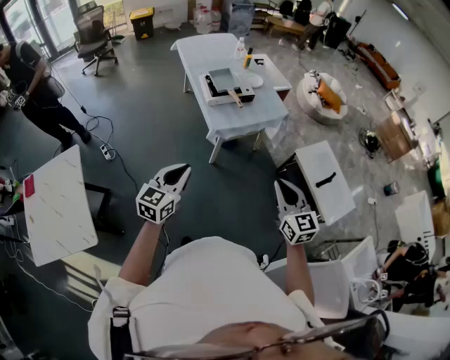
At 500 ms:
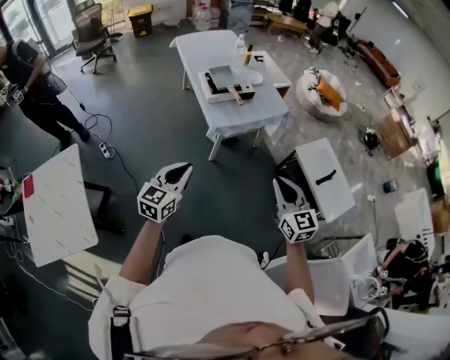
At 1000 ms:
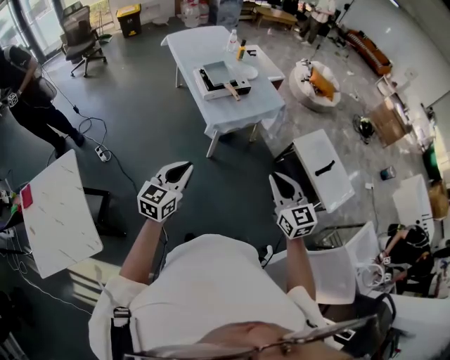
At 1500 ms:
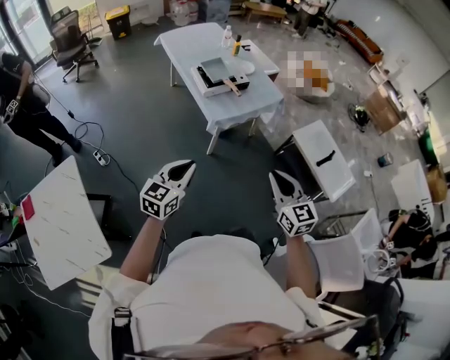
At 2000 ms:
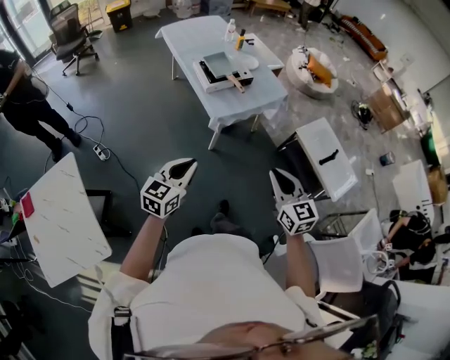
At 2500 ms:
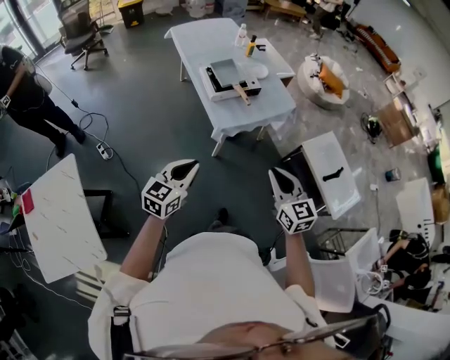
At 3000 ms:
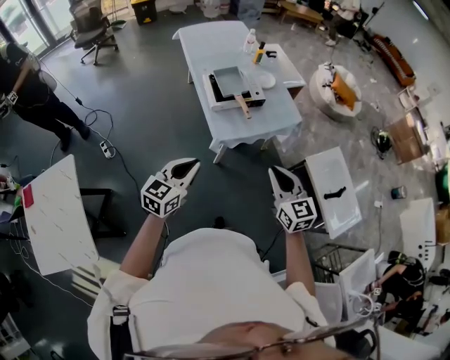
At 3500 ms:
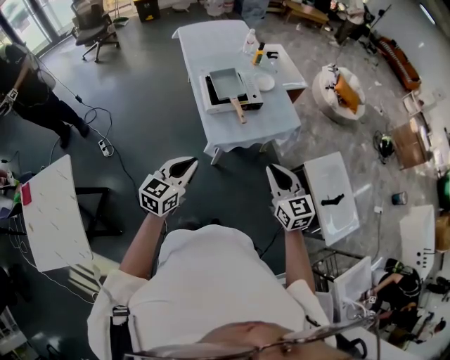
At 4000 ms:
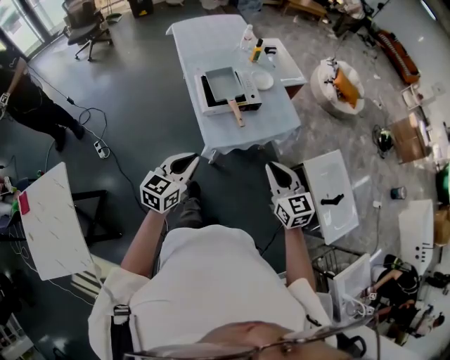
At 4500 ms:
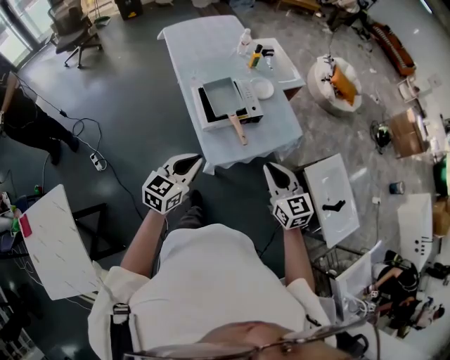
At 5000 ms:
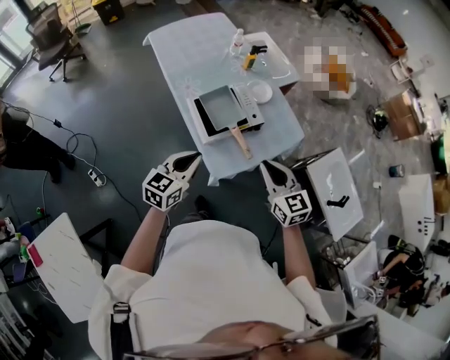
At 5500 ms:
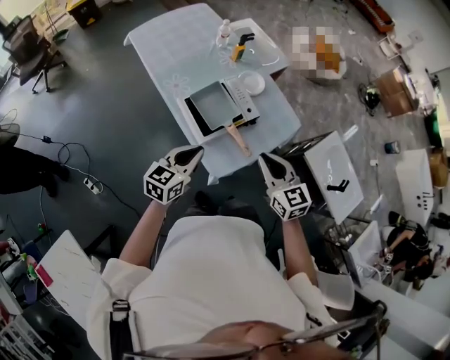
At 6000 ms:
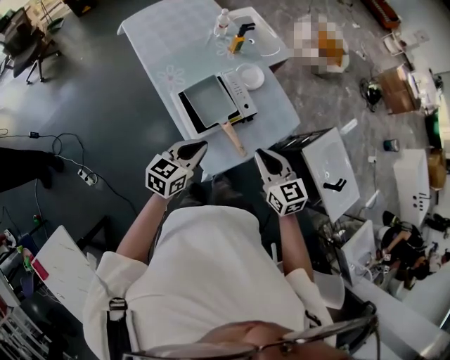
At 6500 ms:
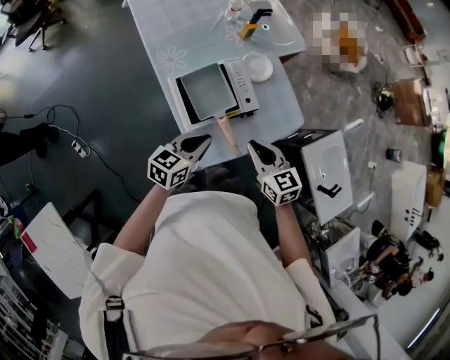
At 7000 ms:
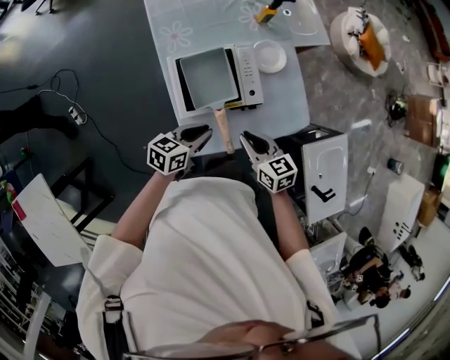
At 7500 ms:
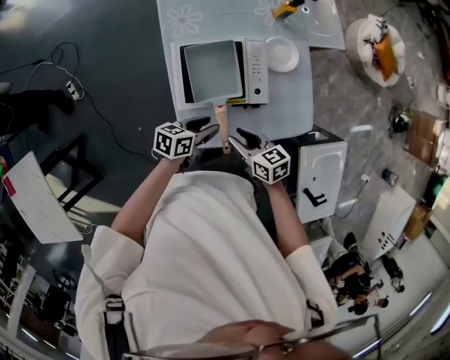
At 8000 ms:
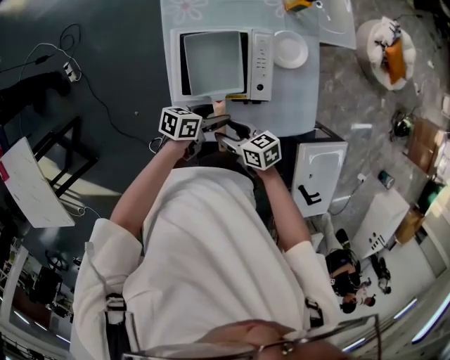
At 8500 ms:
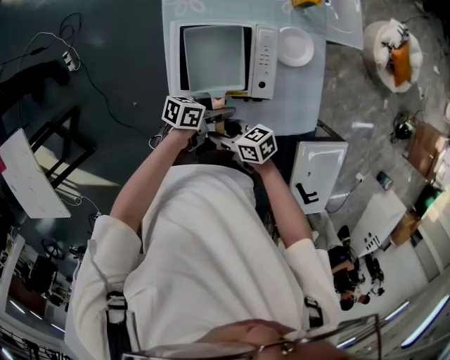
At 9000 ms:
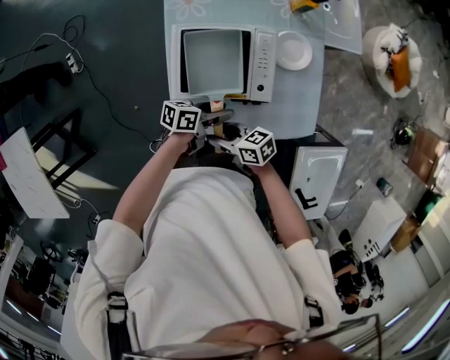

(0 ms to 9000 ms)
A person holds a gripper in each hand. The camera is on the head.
0 ms - 2000 ms: The right gripper heads to the left, covering roughly 10 cm. The left gripper changes place by roughly 5 cm.
2000 ms - 4500 ms: The grippers both shift forward by approximately 35 cm.
4500 ms - 7000 ms: The grippers both shift forward and downward by some 30 cm. The right gripper swivels roughly 30 degrees, while the left gripper changes its angle by some 30 degrees.
7000 ms - 9000 ms: The two grippers go about 10 cm downward. The right gripper swivels some 40 degrees, and opens up, while the left gripper rotates approximately 30 degrees, and opens its fingers.

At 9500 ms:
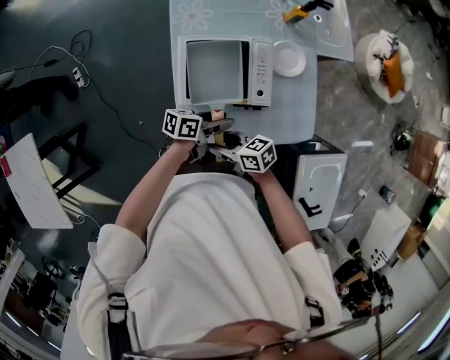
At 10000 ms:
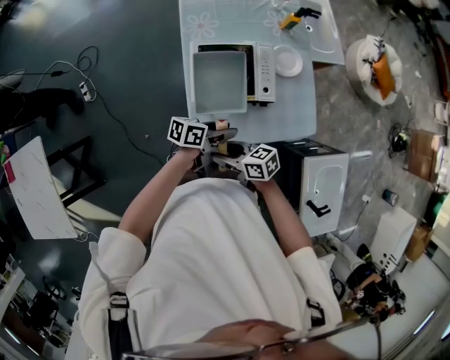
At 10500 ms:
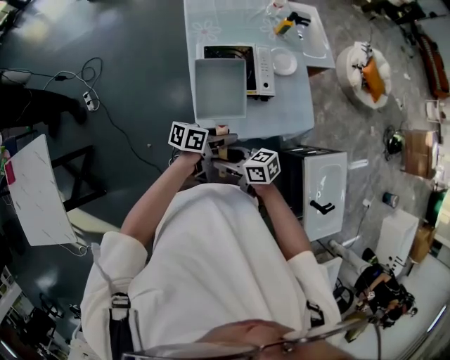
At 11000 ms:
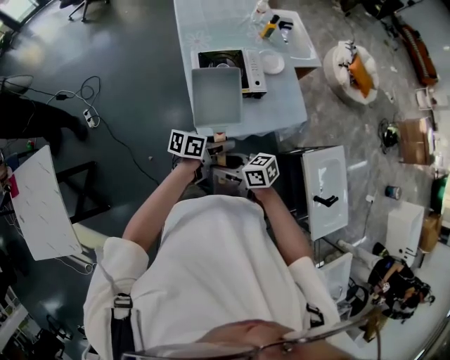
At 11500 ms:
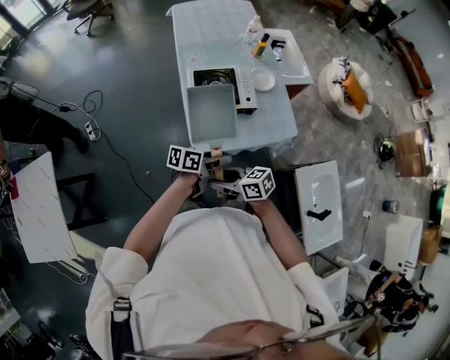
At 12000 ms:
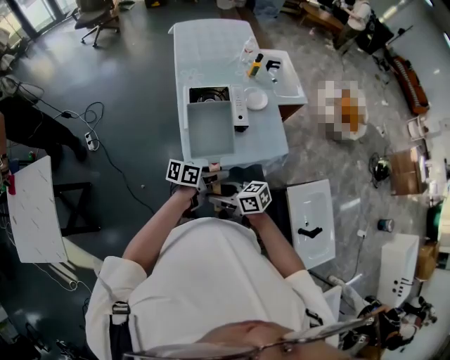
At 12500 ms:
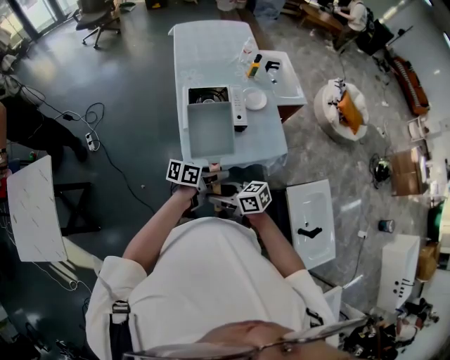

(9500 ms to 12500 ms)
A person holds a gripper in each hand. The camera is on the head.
9500 ms - 11000 ms: The left gripper shifts by roughly 25 cm. The right gripper ends up some 20 cm from where it was.
11000 ms - 12500 ms: The right gripper ends up about 10 cm from where it was. The left gripper ends up about 10 cm from where it was.

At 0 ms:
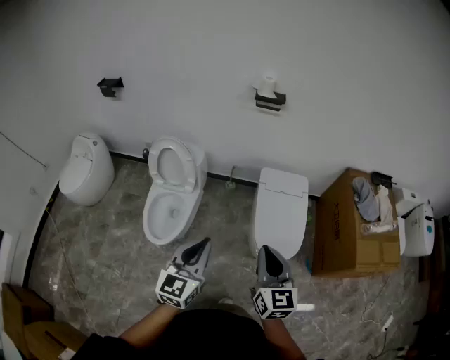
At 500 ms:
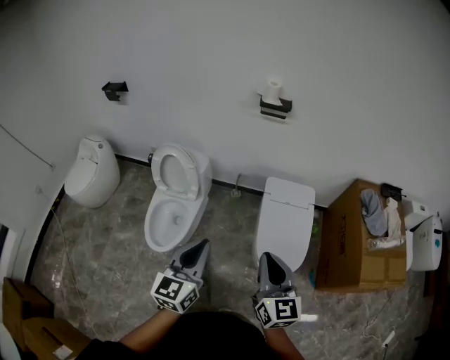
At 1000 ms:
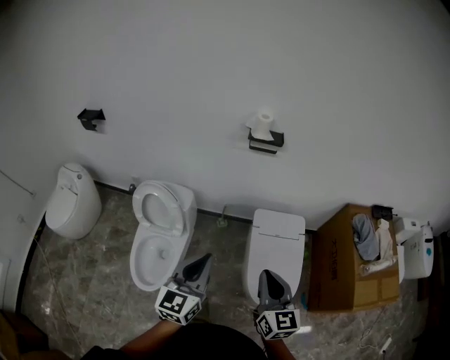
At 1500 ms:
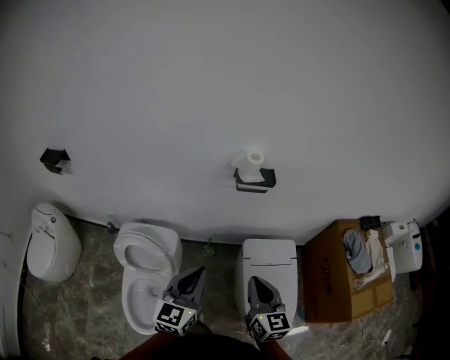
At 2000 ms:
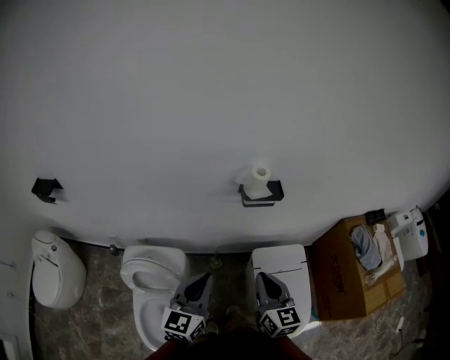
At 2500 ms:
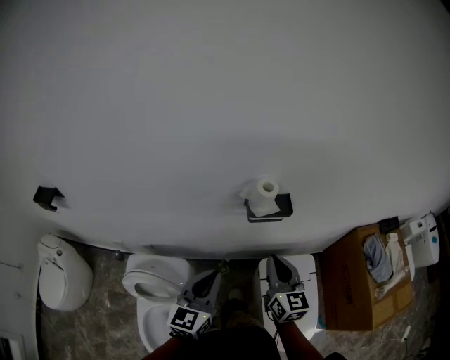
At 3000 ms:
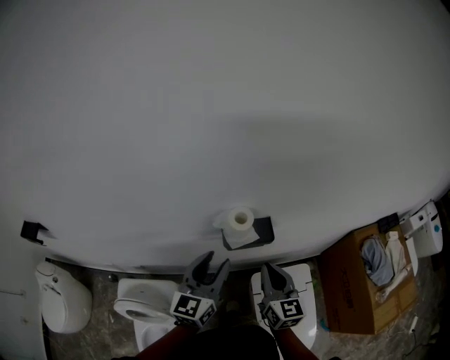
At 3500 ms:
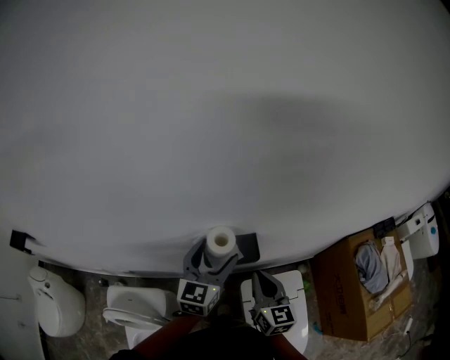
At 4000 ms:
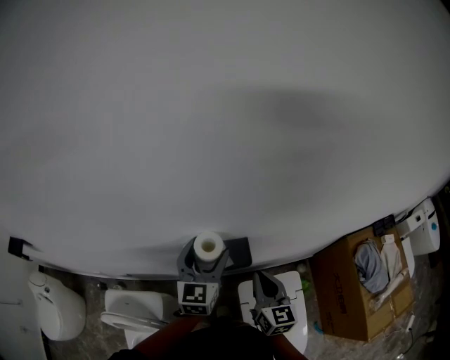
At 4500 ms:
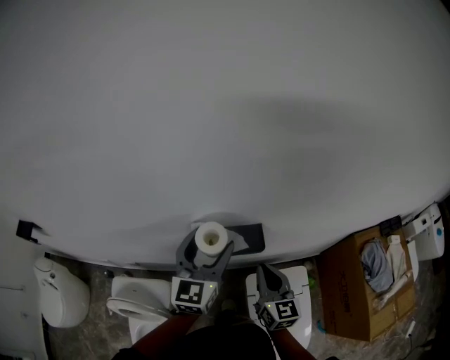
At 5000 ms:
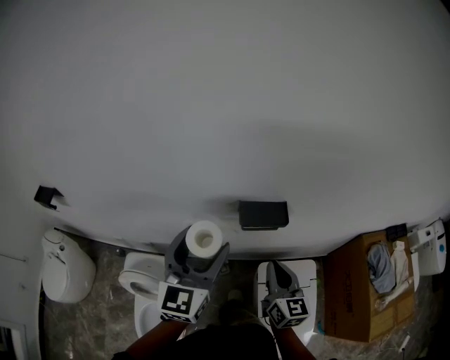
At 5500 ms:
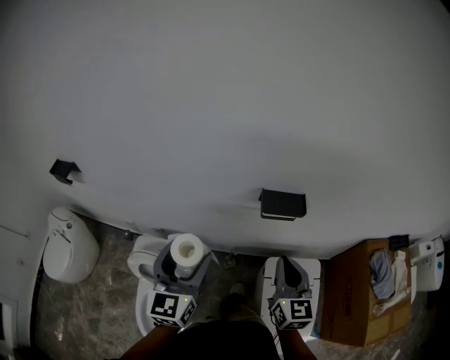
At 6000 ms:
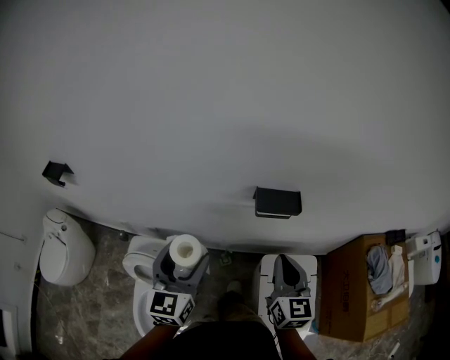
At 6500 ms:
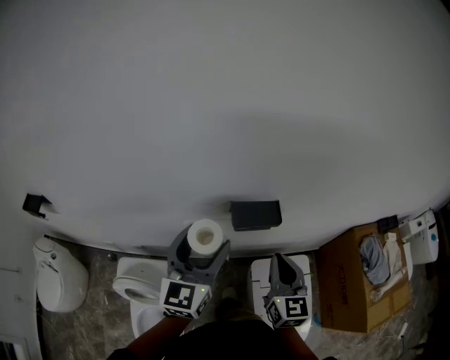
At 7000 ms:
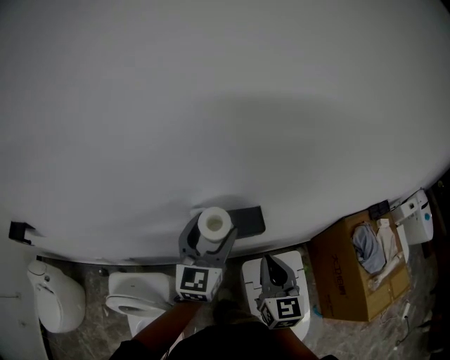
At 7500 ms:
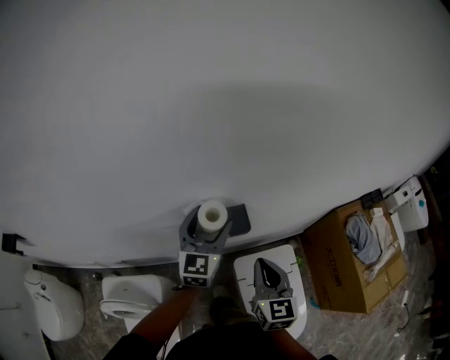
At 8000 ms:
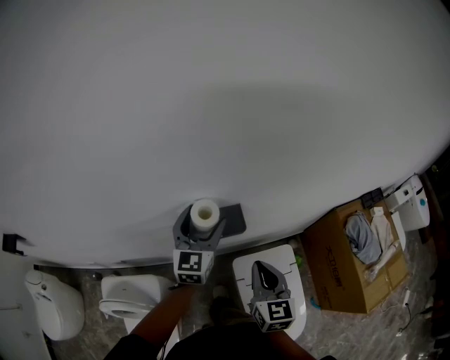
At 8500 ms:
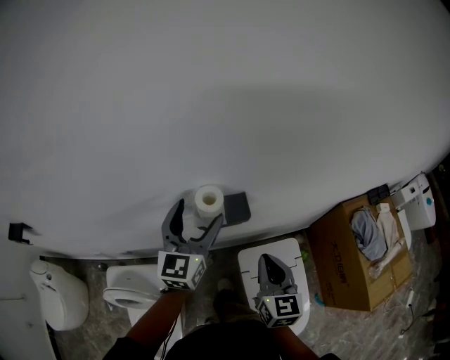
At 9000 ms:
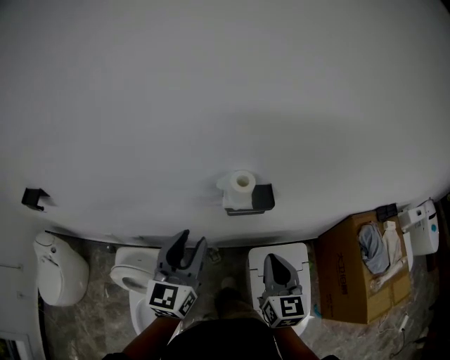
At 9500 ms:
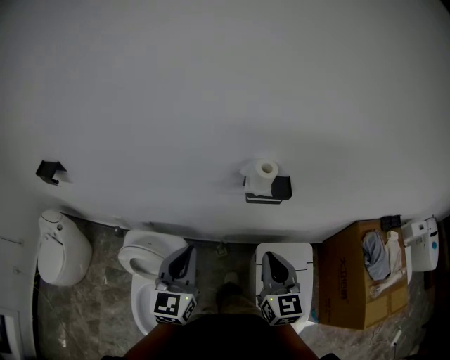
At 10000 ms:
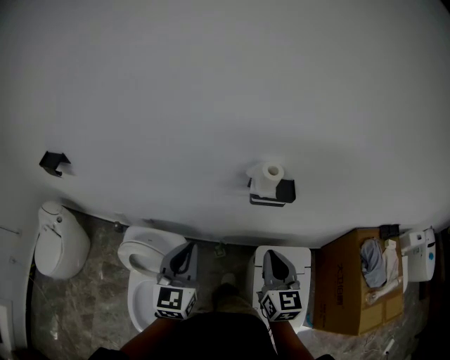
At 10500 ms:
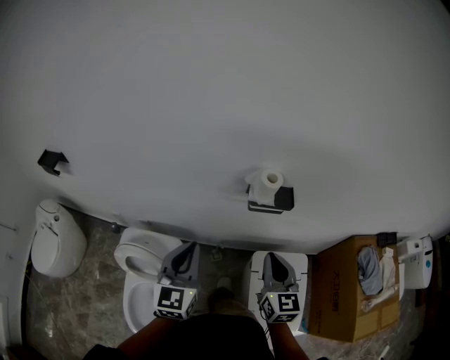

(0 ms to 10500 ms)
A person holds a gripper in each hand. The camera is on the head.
0 ms - 2000 ms: Both grippers are carried forward, roughly 50 cm.
2000 ms - 4000 ms: The left gripper heads forward, covering some 40 cm, and opens its fingers. The right gripper is displaced forward and to the right by roughly 35 cm.
4000 ms - 6500 ms: The left gripper travels backward, to the left and upward by roughly 25 cm. The right gripper shifts about 15 cm backward, upward and to the left.
6500 ms - 8500 ms: The right gripper moves to the right and downward, roughly 10 cm; the left gripper shifts some 15 cm forward and to the right.
8500 ms - 10500 ms: The left gripper heads backward and to the left, covering roughly 30 cm, and closes. The right gripper is displaced to the left and backward by about 15 cm.

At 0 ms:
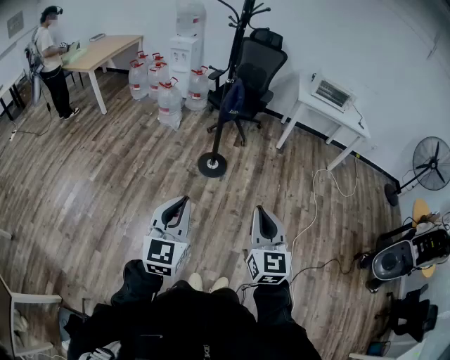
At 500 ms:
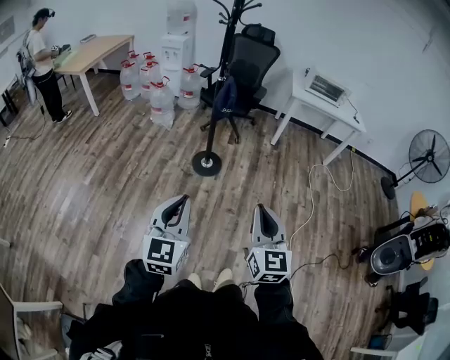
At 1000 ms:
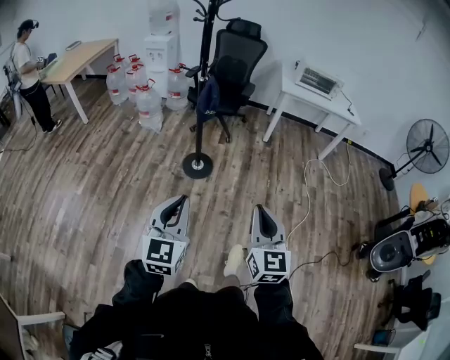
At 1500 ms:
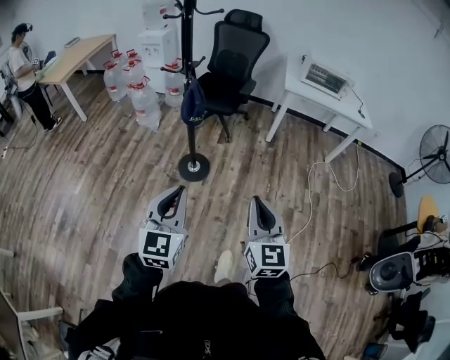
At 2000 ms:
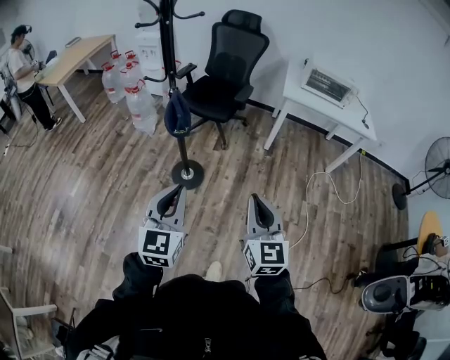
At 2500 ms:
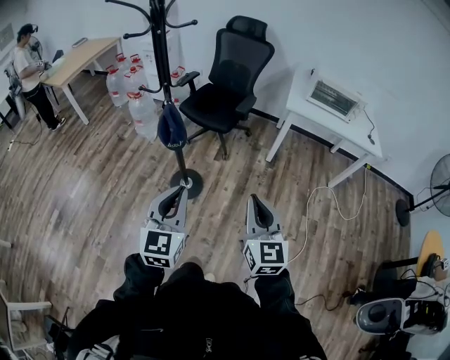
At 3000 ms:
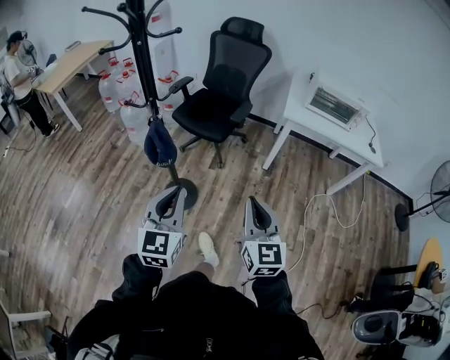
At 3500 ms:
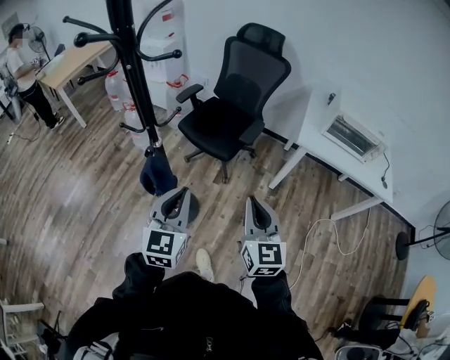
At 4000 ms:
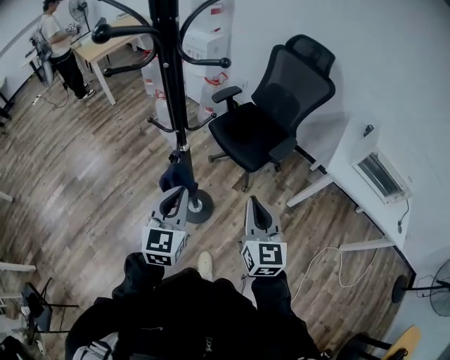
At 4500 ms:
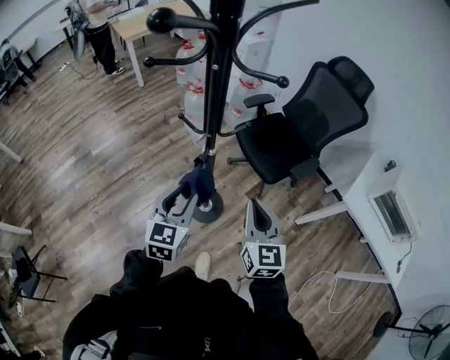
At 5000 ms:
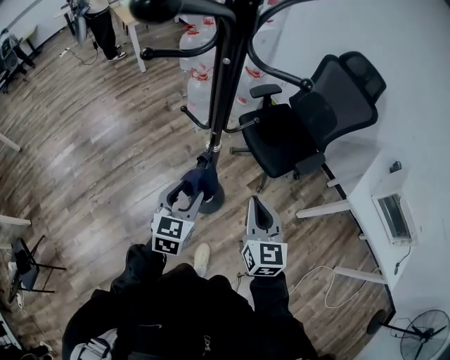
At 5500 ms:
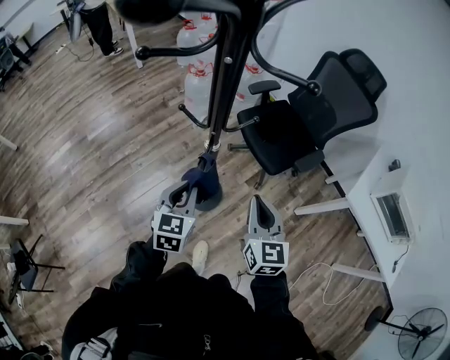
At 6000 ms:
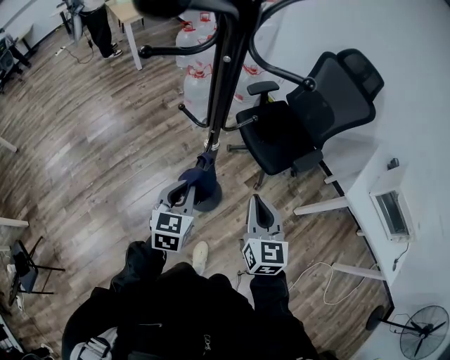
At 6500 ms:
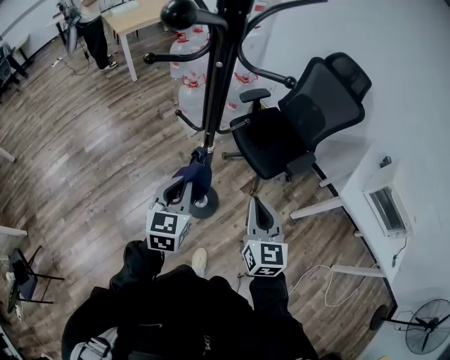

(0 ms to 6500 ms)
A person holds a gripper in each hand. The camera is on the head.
0 ms - 2000 ms: The two grippers travel together, forward and to the right, roughly 50 cm.
2000 ms - 4500 ms: The two grippers travel together, some 50 cm. The right gripper swivels some 30 degrees. The left gripper rotates about 30 degrees, and opens up.
4500 ms - 6500 ms: The left gripper closes.
